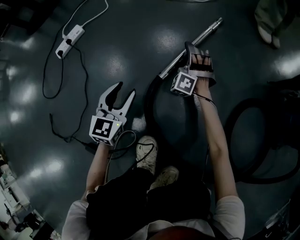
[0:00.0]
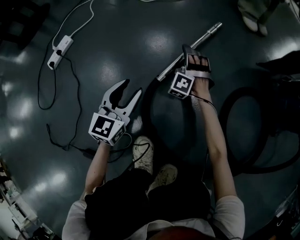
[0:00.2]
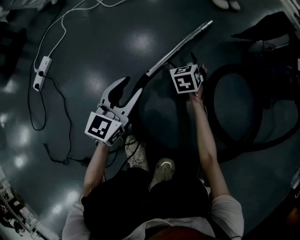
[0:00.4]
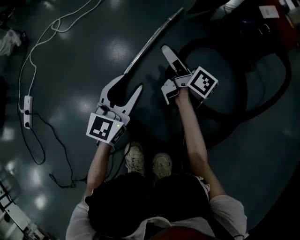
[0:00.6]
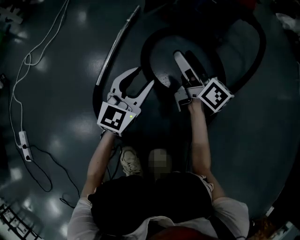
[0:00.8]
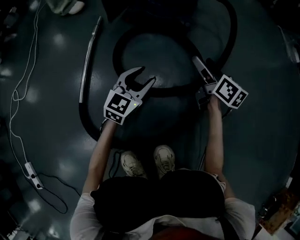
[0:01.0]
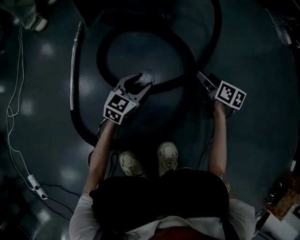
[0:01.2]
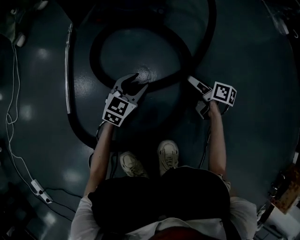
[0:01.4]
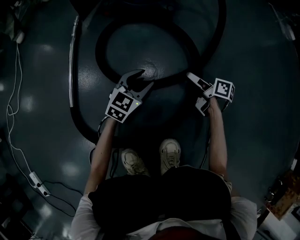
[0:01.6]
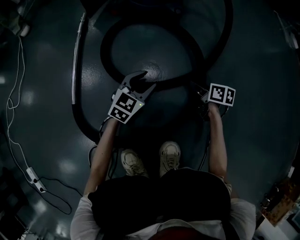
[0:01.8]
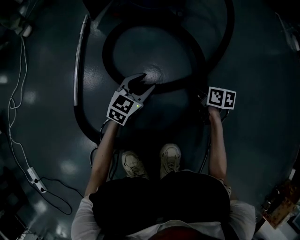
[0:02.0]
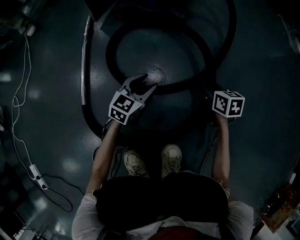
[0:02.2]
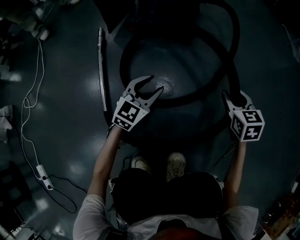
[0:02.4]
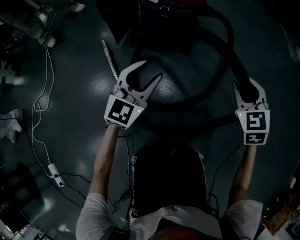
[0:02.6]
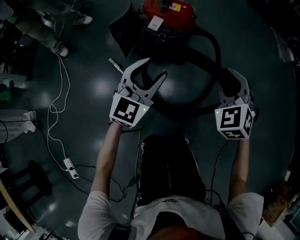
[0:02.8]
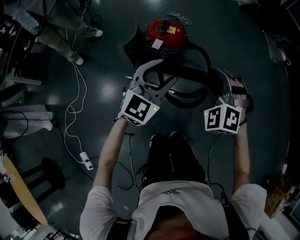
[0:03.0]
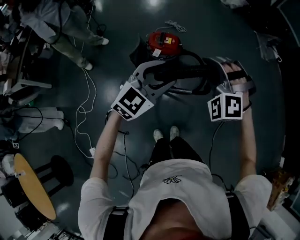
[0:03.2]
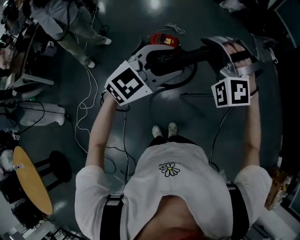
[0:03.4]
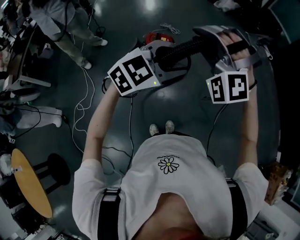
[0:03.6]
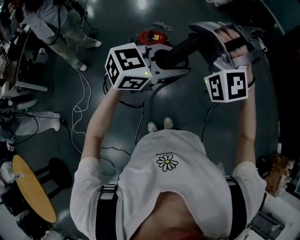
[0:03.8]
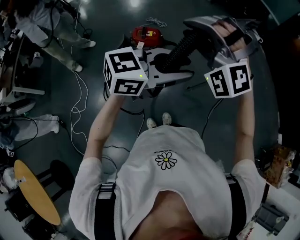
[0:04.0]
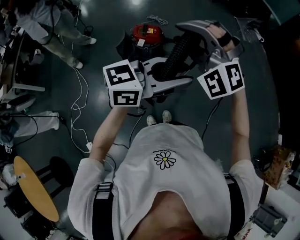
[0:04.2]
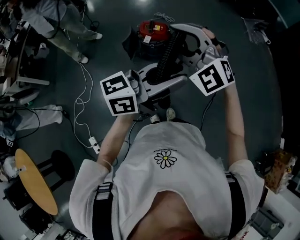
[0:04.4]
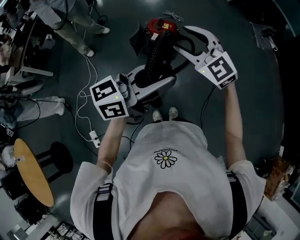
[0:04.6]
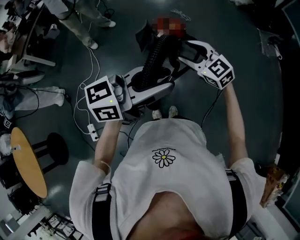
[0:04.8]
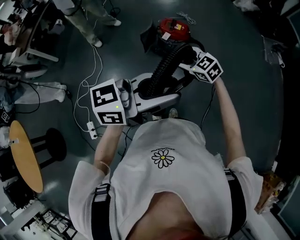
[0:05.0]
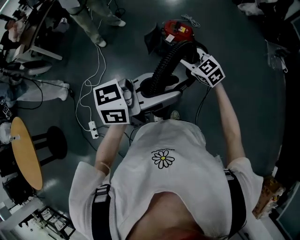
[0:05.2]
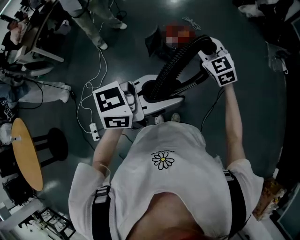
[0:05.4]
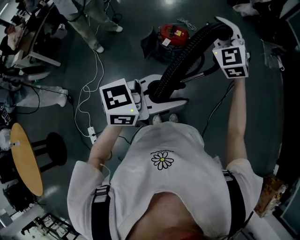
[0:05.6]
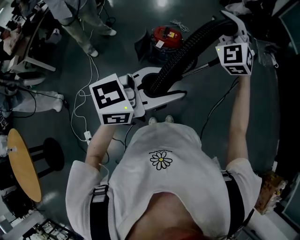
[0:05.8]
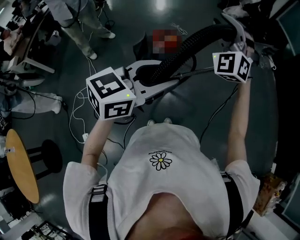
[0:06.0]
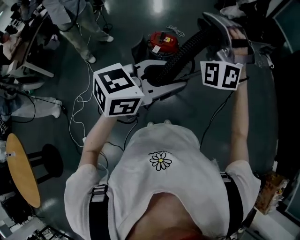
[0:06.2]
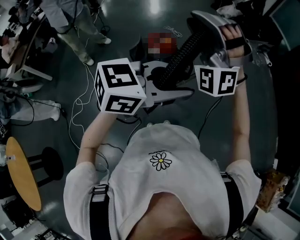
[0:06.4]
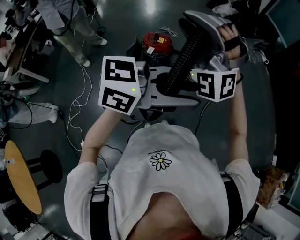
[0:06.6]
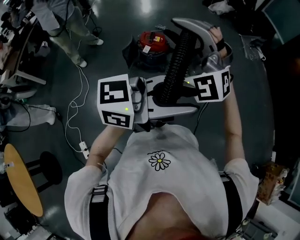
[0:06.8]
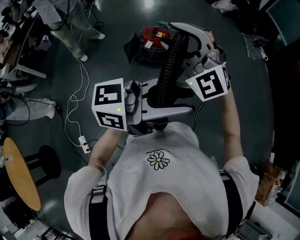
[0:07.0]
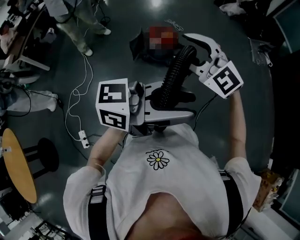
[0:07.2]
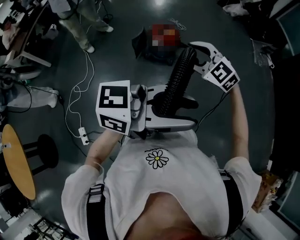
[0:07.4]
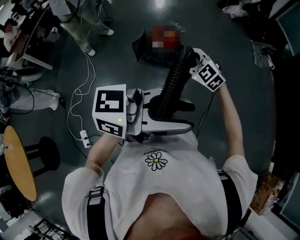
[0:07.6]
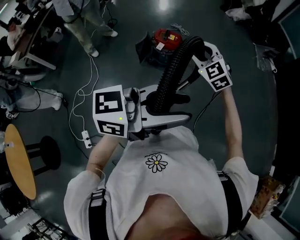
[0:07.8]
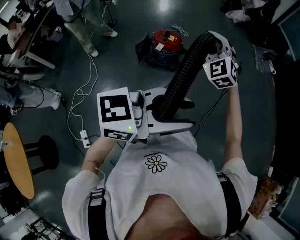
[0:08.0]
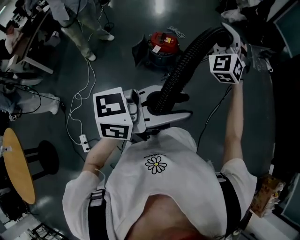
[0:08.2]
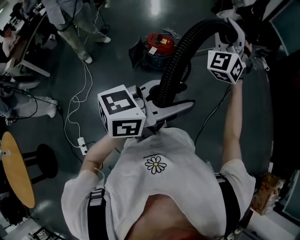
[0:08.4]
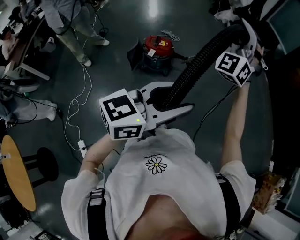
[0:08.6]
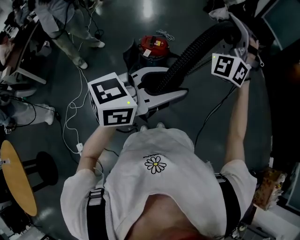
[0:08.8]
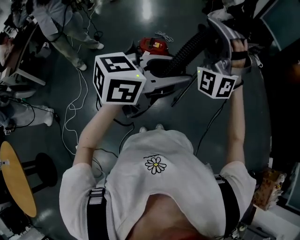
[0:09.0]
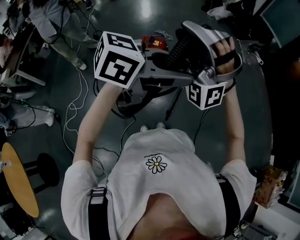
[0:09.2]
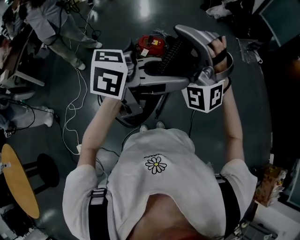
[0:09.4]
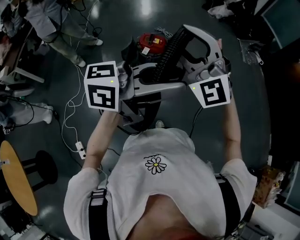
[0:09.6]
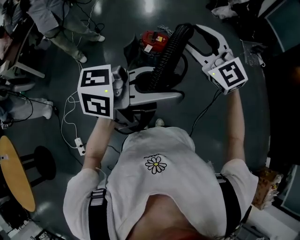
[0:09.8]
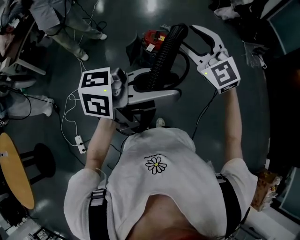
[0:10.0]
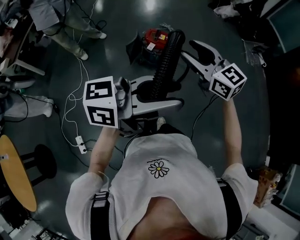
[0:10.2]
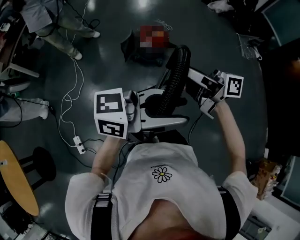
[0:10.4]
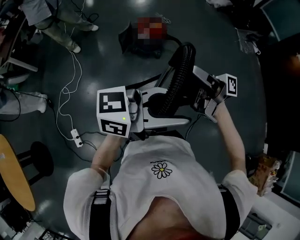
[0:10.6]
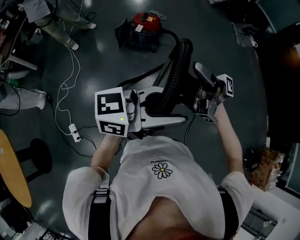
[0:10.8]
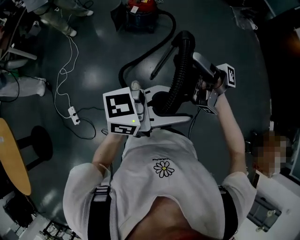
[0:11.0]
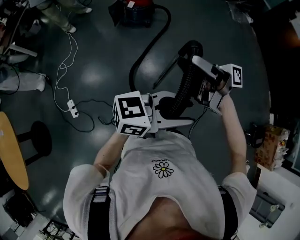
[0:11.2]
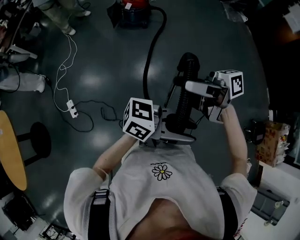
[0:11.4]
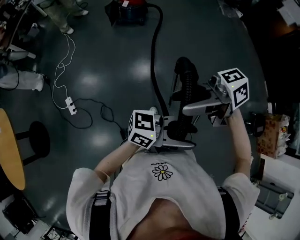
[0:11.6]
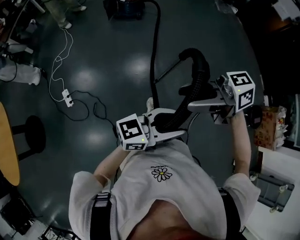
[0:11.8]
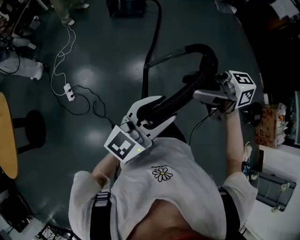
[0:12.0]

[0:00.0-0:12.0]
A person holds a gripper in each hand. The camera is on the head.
0:00.0 to 0:01.6: Both grippers are carried some 60 cm. The right gripper rotates around the line of its fingers by about 160 degrees, clockwise from behind. The left gripper changes its angle by about 90 degrees.
0:01.6 to 0:03.0: Both grippers move upward, roughly 80 cm. The right gripper rotates around the line of its fingers by some 120 degrees, counterclockwise from behind, and closes its fingers. The left gripper swivels about 20 degrees.
0:03.0 to 0:04.4: The right gripper is displaced upward and backward by some 35 cm, and changes its angle by approximately 40 degrees. The left gripper goes about 40 cm upward, backward and to the right, and rotates approximately 60 degrees.
0:04.4 to 0:06.0: The right gripper reaches about 20 cm downward, then returns, and changes its angle by some 40 degrees. The left gripper shifts by some 5 cm, and turns by some 30 degrees.
0:06.0 to 0:07.6: The right gripper shifts roughly 25 cm downward, and angles its fingers downward, by approximately 30 degrees. The left gripper moves some 10 cm, and changes its angle by some 30 degrees.
0:07.6 to 0:09.0: The right gripper is displaced upward by some 25 cm, and tips its fingers upward by approximately 50 degrees. Meanwhile the left gripper shifts by roughly 10 cm, and swivels about 20 degrees.
0:09.0 to 0:10.4: The left gripper shifts by roughly 10 cm, and changes its angle by roughly 30 degrees, while the right gripper travels downward by some 15 cm, and twists roughly 140 degrees clockwise, seen from behind.
0:10.4 to 0:12.0: Both grippers are carried approximately 80 cm. The left gripper turns by about 40 degrees.

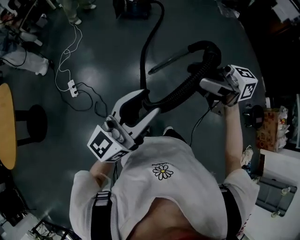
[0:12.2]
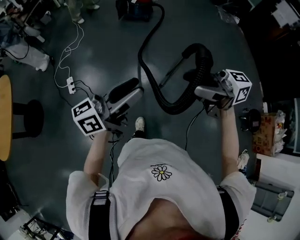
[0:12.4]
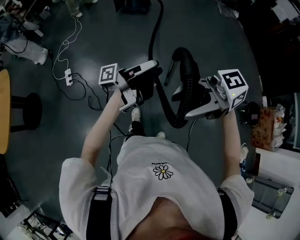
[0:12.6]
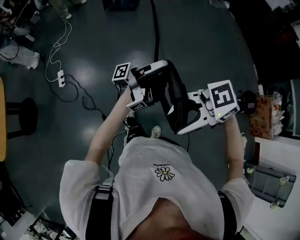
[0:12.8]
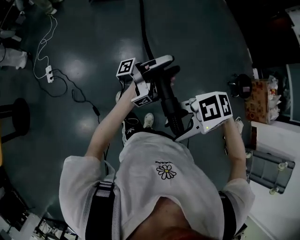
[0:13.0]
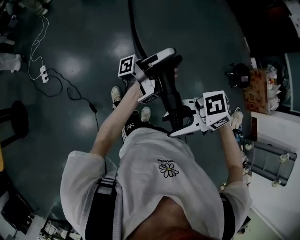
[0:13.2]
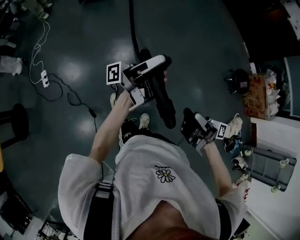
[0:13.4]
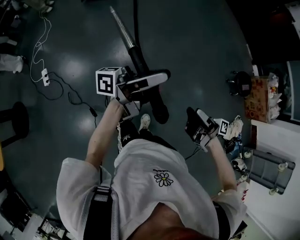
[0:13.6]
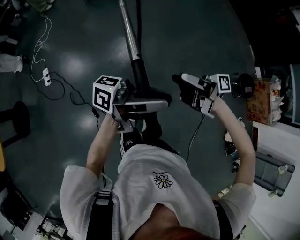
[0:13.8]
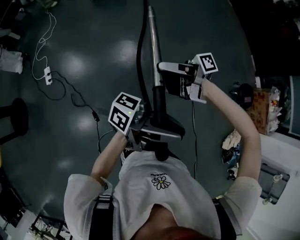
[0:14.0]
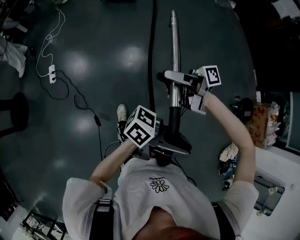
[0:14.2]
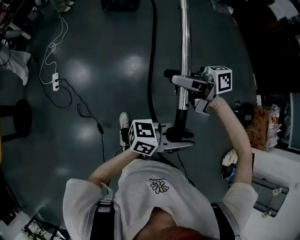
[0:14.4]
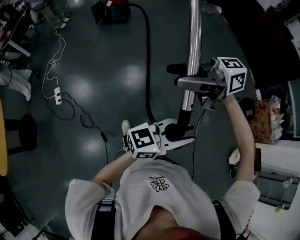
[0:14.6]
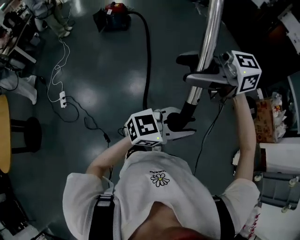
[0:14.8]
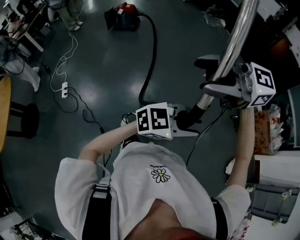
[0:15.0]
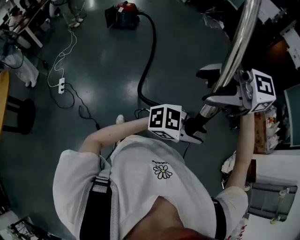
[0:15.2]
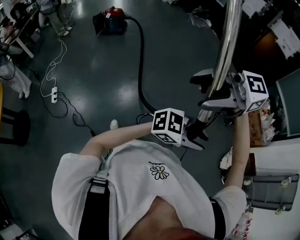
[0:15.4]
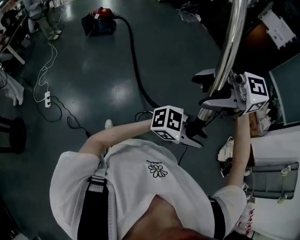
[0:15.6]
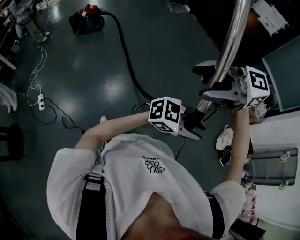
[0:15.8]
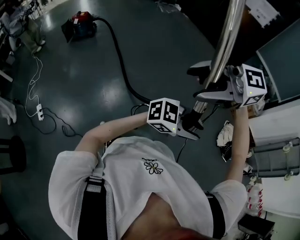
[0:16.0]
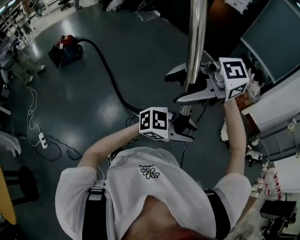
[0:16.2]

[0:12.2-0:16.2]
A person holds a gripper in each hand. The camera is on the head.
0:12.2 to 0:13.6: The left gripper changes place by some 30 cm, rolls counterclockwise, seen from behind, by roughly 60 degrees, and closes its fingers; the right gripper ends up approximately 50 cm from where it was, and changes its angle by about 70 degrees.
0:13.6 to 0:14.8: The left gripper moves some 15 cm, and tips its fingers downward by about 40 degrees, while the right gripper goes about 30 cm upward, and turns by roughly 90 degrees.
0:14.8 to 0:16.2: The left gripper moves approximately 25 cm, and rotates approximately 40 degrees, while the right gripper moves about 20 cm, and turns by about 20 degrees.

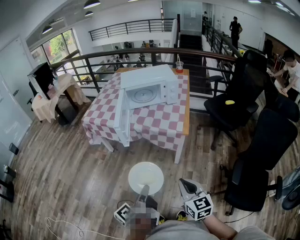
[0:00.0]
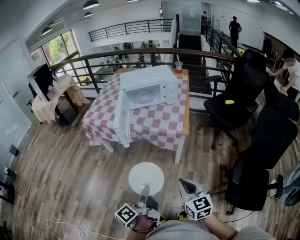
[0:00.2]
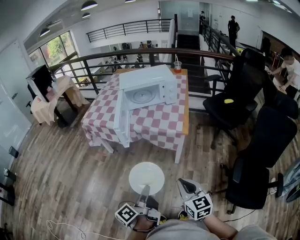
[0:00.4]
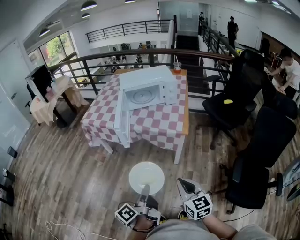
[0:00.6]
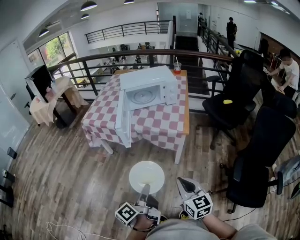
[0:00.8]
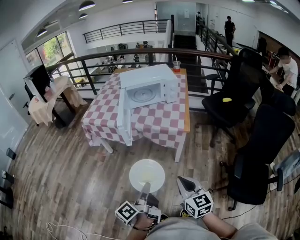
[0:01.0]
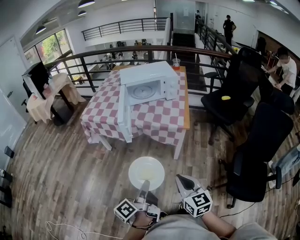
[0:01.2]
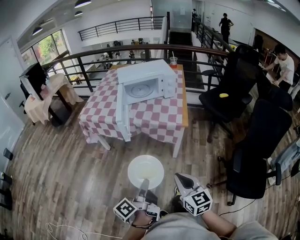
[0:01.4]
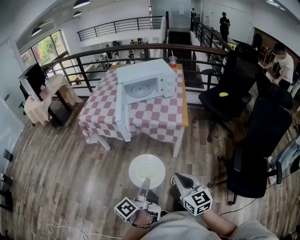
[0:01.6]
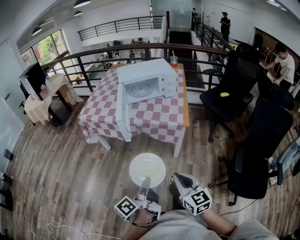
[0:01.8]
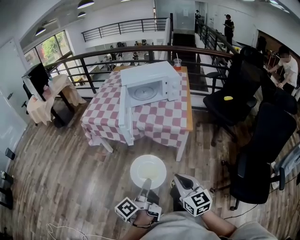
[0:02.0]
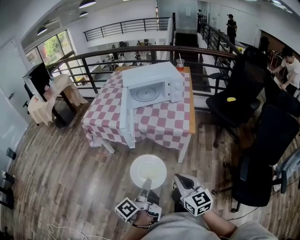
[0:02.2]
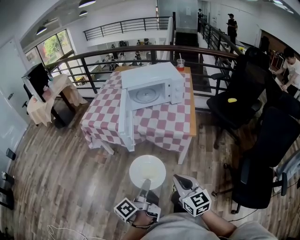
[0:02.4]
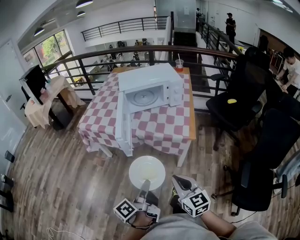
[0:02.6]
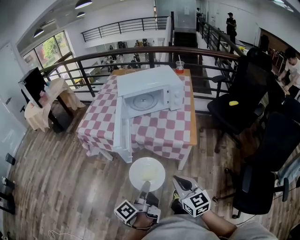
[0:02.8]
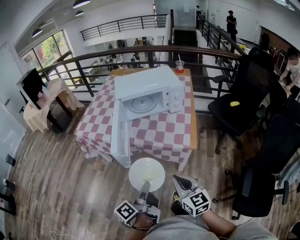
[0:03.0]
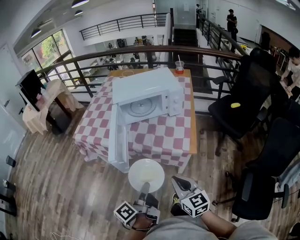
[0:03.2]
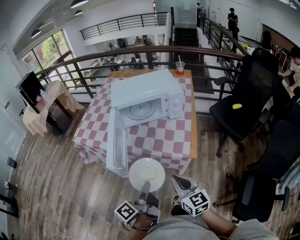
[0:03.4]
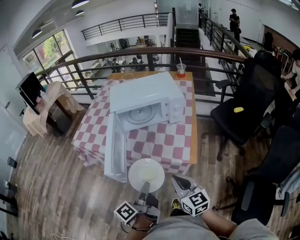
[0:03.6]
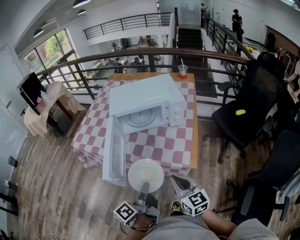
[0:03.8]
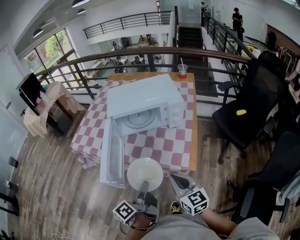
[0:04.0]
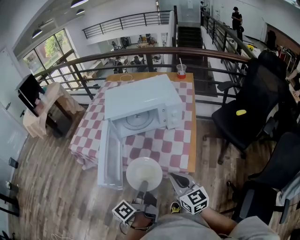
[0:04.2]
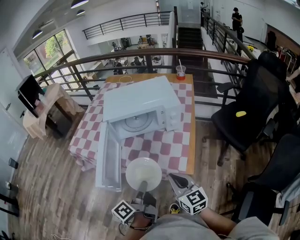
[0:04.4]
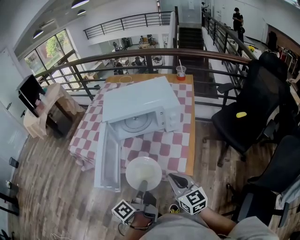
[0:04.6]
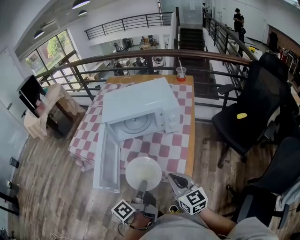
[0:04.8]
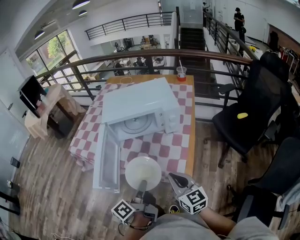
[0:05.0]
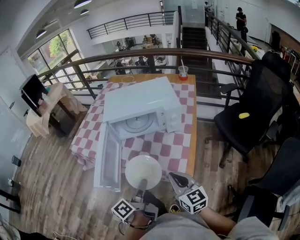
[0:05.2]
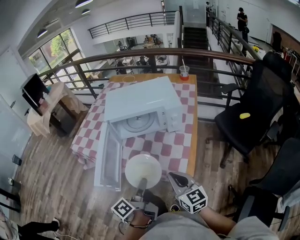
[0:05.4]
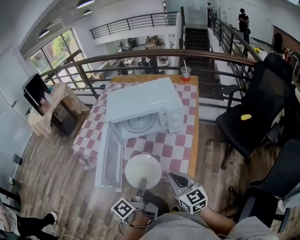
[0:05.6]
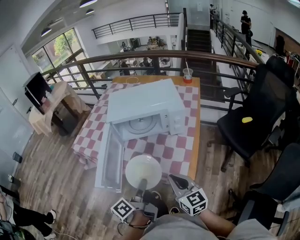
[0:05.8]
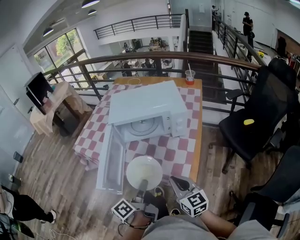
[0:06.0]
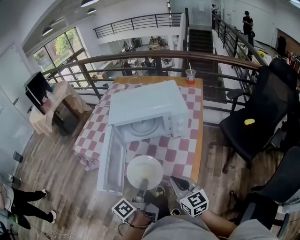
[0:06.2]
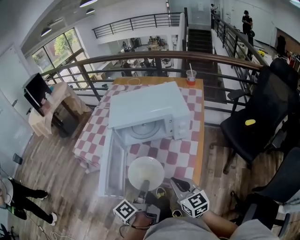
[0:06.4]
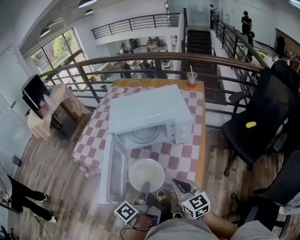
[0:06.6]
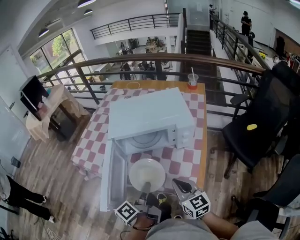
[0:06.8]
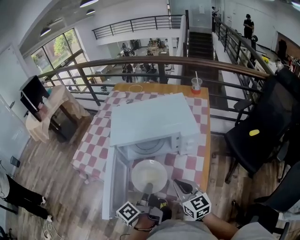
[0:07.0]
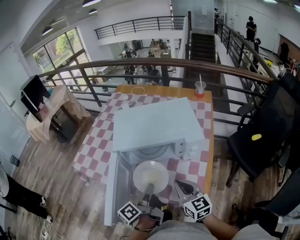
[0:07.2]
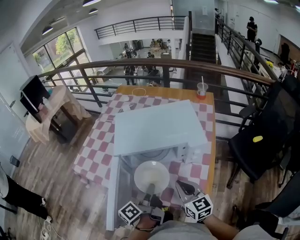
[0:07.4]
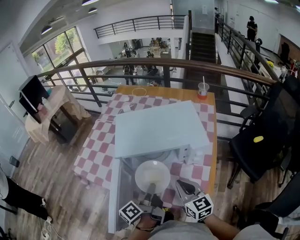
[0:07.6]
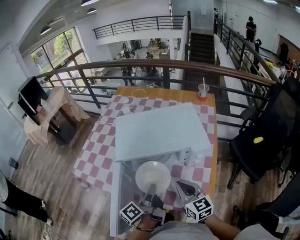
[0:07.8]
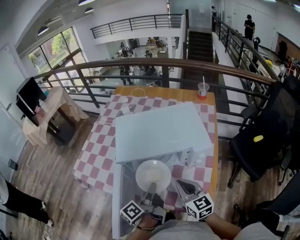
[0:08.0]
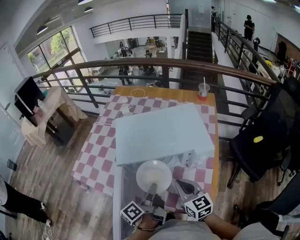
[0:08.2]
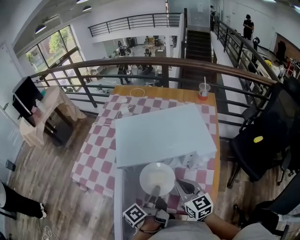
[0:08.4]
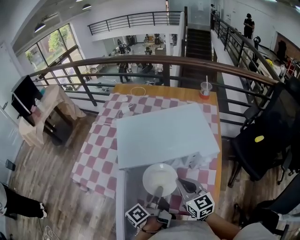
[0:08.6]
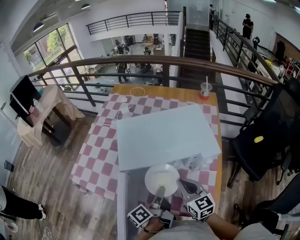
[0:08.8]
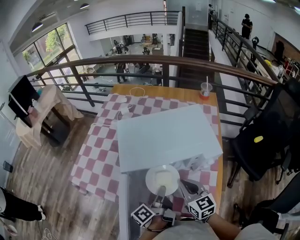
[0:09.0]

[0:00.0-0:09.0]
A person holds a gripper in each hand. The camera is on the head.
0:00.0 to 0:01.6: The right gripper travels to the left by approximately 5 cm.
0:01.6 to 0:03.0: The two grippers go approximately 20 cm forward.
0:03.0 to 0:04.4: The grippers both shift forward and to the right by roughly 20 cm.
0:04.4 to 0:06.0: The grippers make only small movements.
0:06.0 to 0:07.6: The two grippers go some 20 cm forward.
0:07.6 to 0:09.0: The grippers both shift forward by roughly 5 cm.
